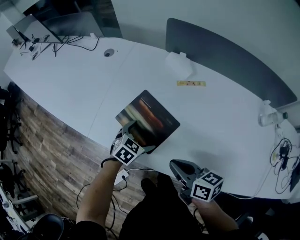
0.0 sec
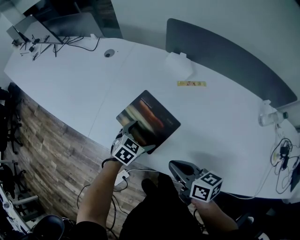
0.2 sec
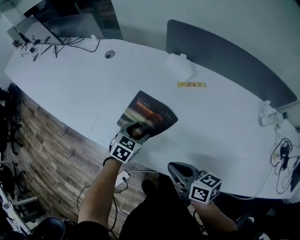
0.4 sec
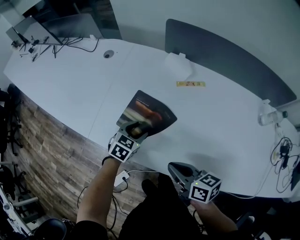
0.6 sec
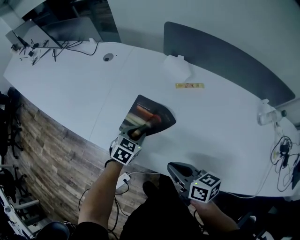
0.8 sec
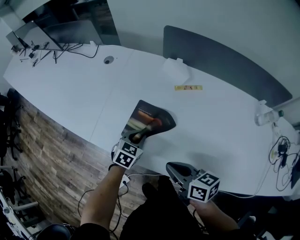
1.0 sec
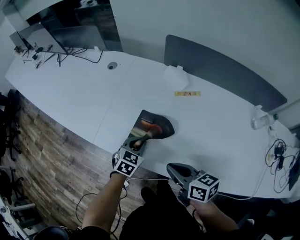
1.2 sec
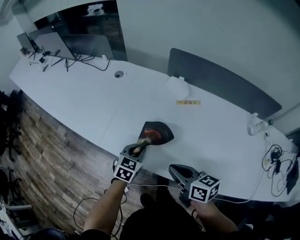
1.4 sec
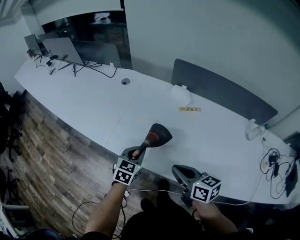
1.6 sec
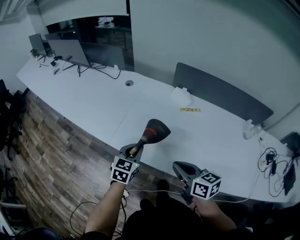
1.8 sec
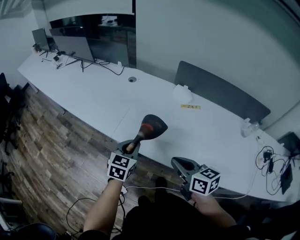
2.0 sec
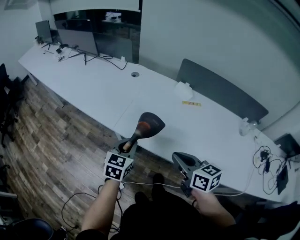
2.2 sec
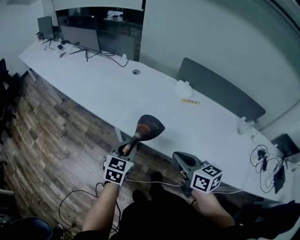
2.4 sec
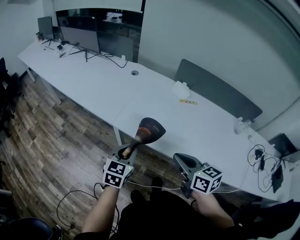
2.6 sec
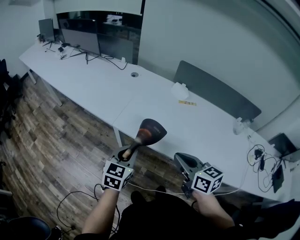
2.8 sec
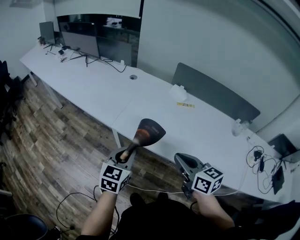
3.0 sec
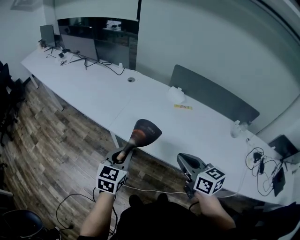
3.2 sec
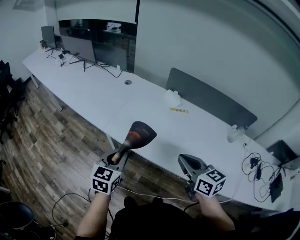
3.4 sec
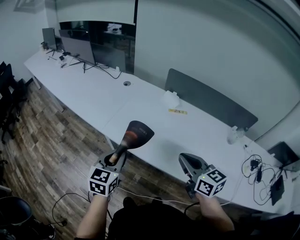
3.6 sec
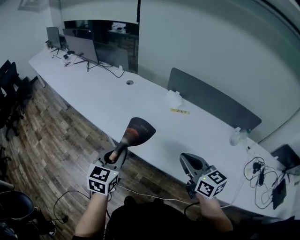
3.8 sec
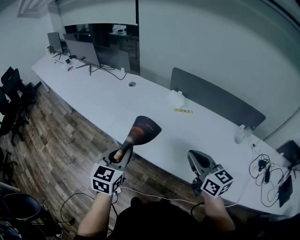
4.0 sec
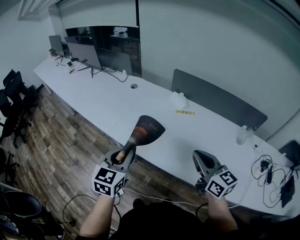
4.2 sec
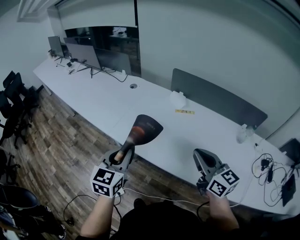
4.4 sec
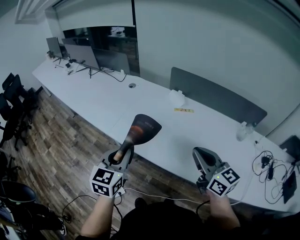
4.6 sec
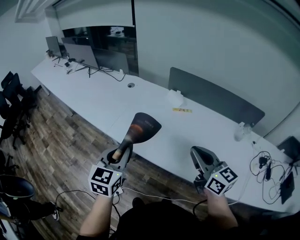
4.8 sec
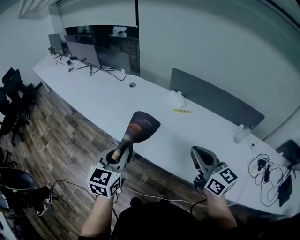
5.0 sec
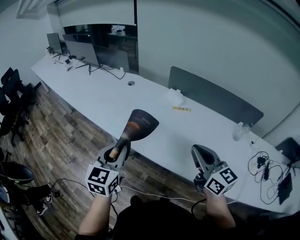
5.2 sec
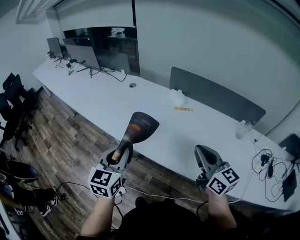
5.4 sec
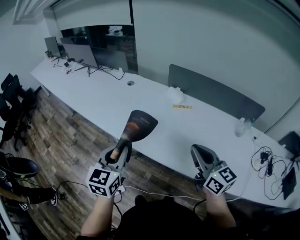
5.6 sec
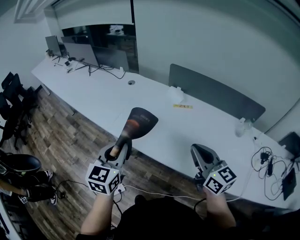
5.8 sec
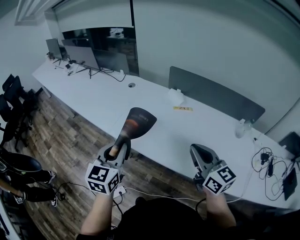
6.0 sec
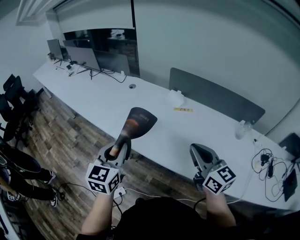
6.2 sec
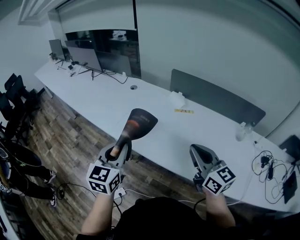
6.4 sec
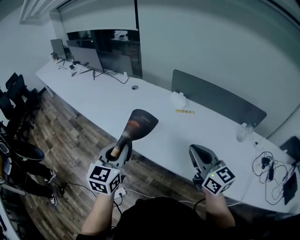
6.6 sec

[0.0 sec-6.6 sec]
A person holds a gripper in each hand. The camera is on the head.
0.0 sec to 1.6 sec: The left gripper is displaced upward and to the left by about 15 cm, rotates some 20 degrees, and closes, while the right gripper goes some 10 cm upward.
1.6 sec to 3.2 sec: The left gripper goes about 25 cm backward, upward and to the left. Meanwhile the right gripper shifts some 15 cm backward and upward.
3.2 sec to 5.0 sec: The right gripper heads to the right and upward, covering about 15 cm. Meanwhile the left gripper is displaced upward and to the right by about 10 cm.
5.0 sec to 6.6 sec: The grippers make only small movements.

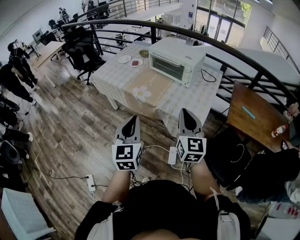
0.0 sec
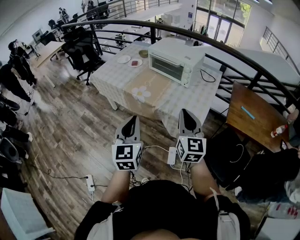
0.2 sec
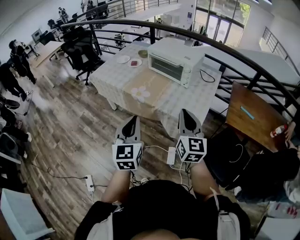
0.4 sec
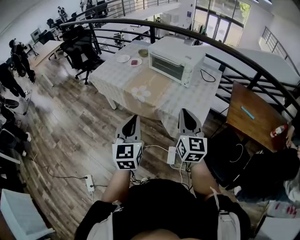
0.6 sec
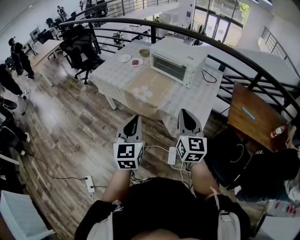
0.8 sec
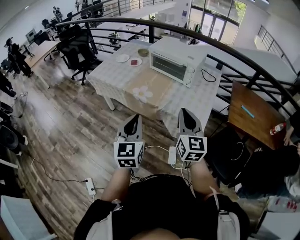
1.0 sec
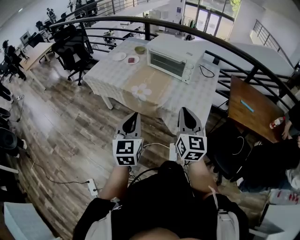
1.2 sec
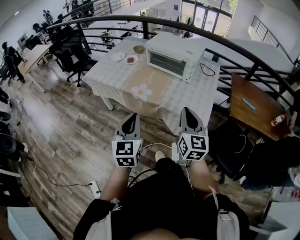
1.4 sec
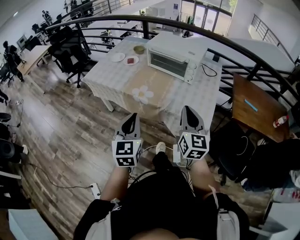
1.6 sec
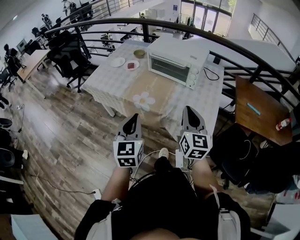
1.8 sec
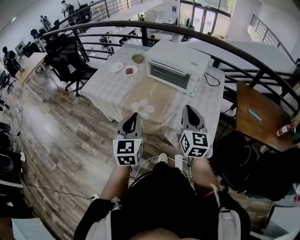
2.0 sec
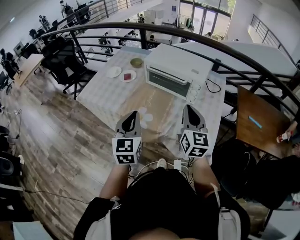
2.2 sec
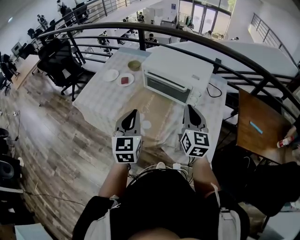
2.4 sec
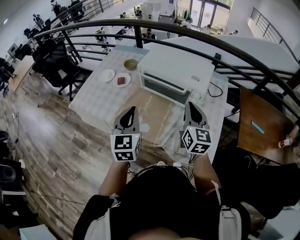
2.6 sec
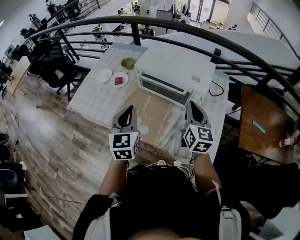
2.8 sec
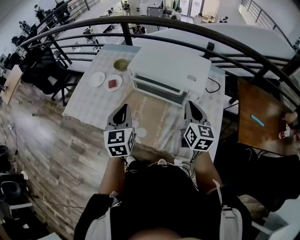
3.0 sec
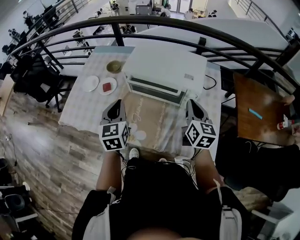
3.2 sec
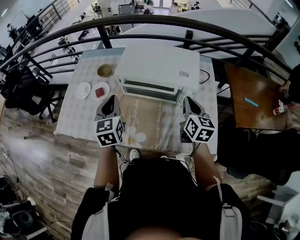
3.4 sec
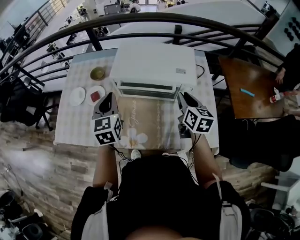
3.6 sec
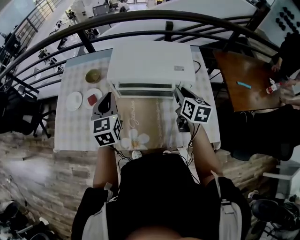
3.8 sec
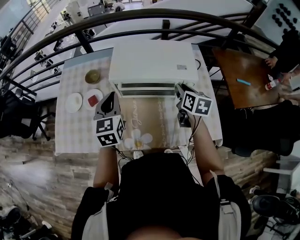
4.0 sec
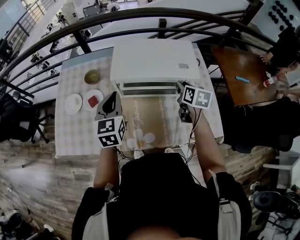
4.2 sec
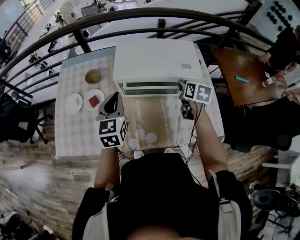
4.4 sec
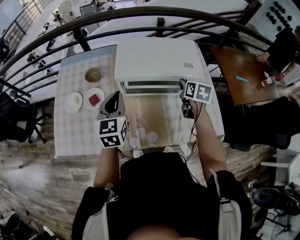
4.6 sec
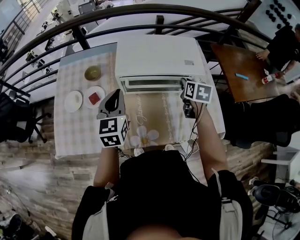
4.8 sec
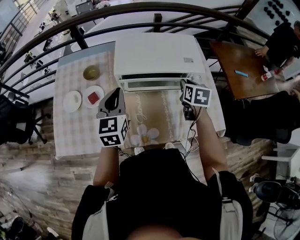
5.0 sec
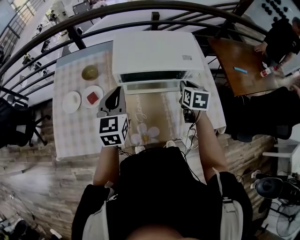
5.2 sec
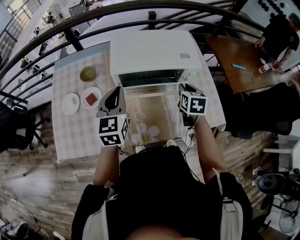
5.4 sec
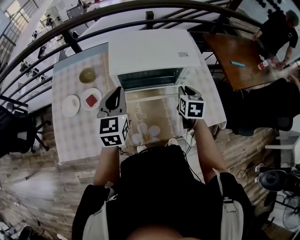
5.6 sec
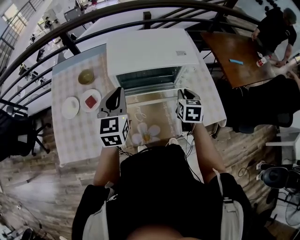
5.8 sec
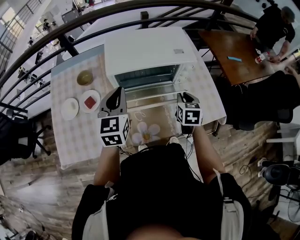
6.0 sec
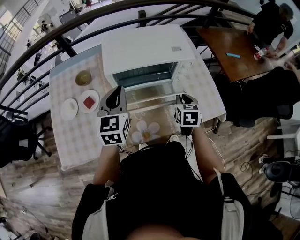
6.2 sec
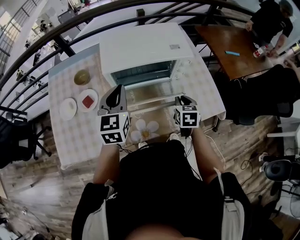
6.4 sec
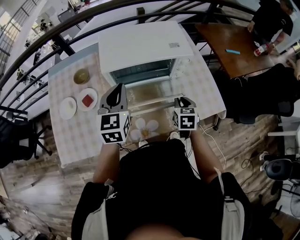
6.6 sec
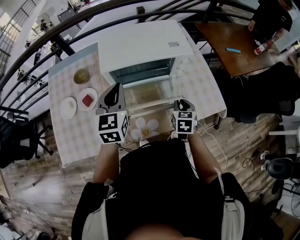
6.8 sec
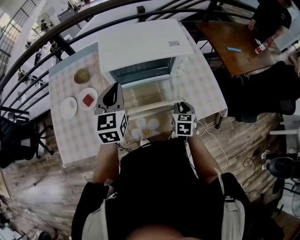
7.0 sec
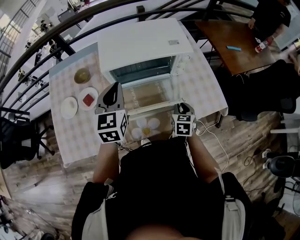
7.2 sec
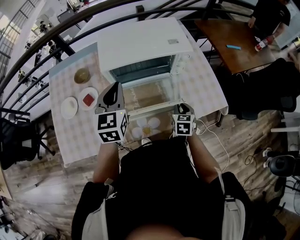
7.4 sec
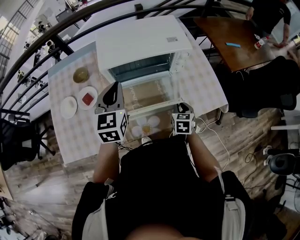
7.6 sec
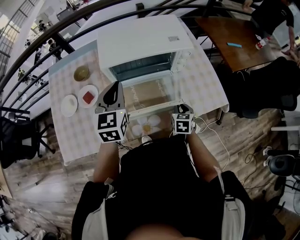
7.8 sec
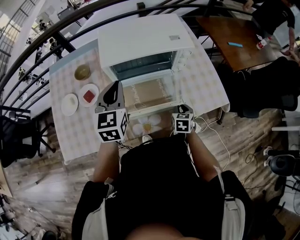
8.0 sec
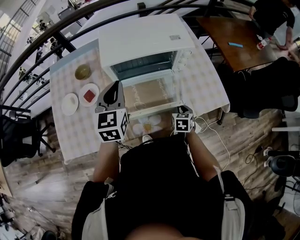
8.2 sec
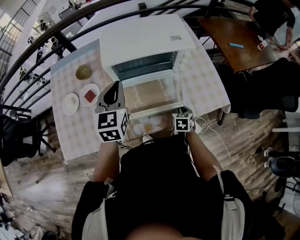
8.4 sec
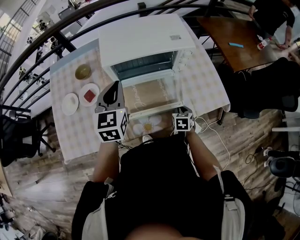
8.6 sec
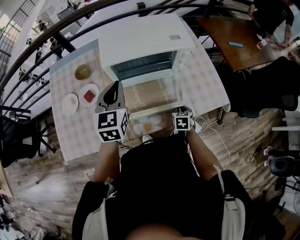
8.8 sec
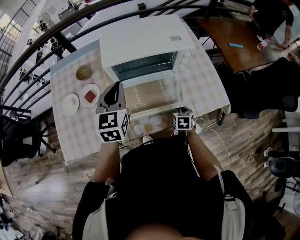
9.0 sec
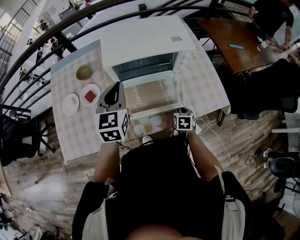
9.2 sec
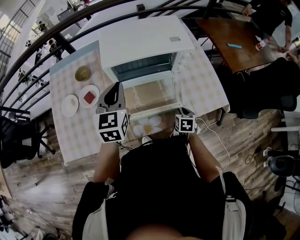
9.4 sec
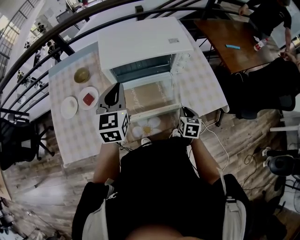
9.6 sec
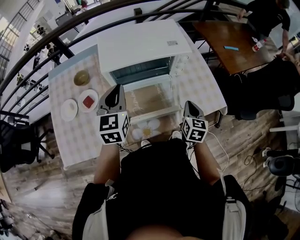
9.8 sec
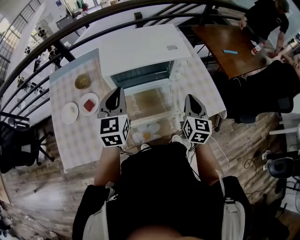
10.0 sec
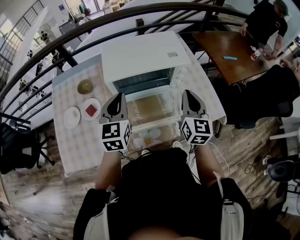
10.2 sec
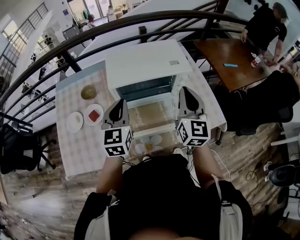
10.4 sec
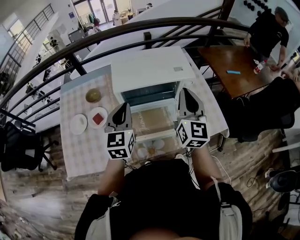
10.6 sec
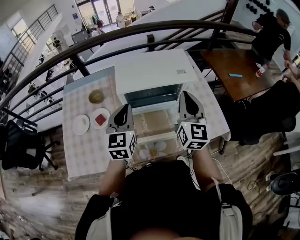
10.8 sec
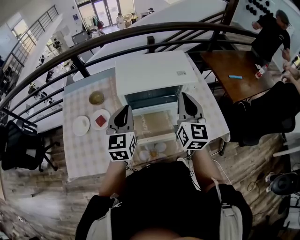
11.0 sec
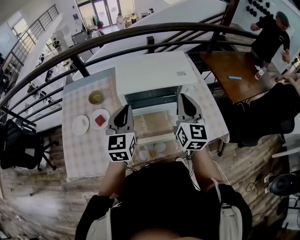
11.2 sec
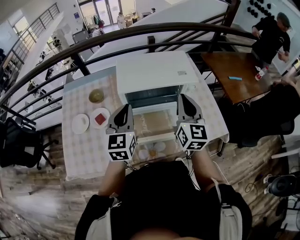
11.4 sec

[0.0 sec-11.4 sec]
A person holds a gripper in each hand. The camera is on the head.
0.0 sec to 1.4 sec: The two grippers go some 5 cm to the left.
1.4 sec to 2.8 sec: Both grippers travel together forward, approximately 35 cm.
2.8 sec to 4.2 sec: The left gripper goes approximately 20 cm forward, and turns by approximately 20 degrees. Meanwhile the right gripper goes approximately 15 cm forward and downward, swivels some 40 degrees, and opens up.
4.2 sec to 5.6 sec: The right gripper is displaced backward by approximately 5 cm.
5.6 sec to 7.2 sec: The right gripper shifts about 15 cm downward and backward.
7.2 sec to 8.6 sec: The right gripper shifts about 10 cm downward.
8.6 sec to 10.0 sec: The right gripper is displaced upward by approximately 25 cm, and angles its fingers upward, by some 40 degrees.
10.0 sec to 11.4 sec: The right gripper travels upward and to the left by some 15 cm.

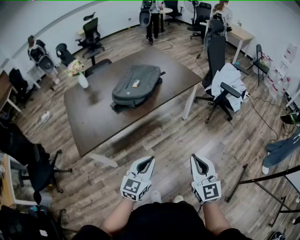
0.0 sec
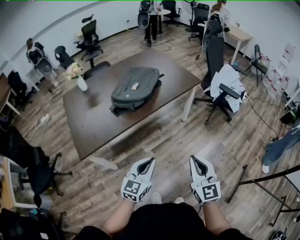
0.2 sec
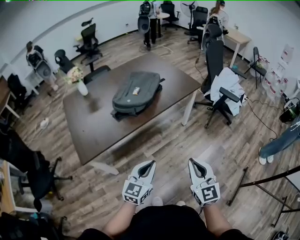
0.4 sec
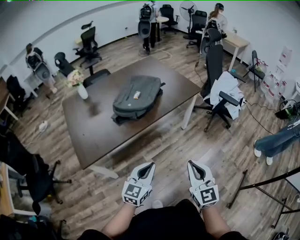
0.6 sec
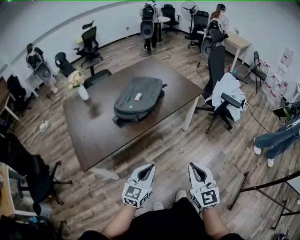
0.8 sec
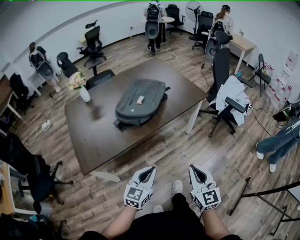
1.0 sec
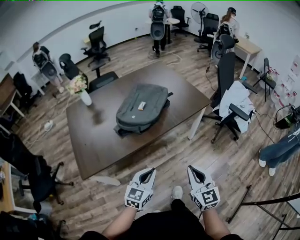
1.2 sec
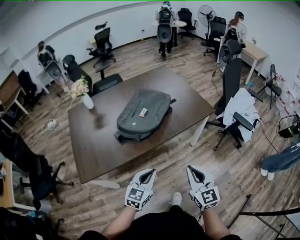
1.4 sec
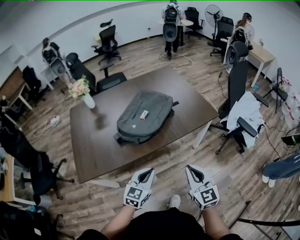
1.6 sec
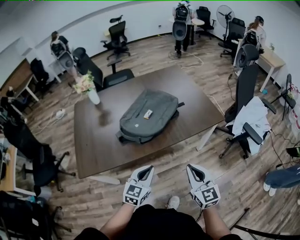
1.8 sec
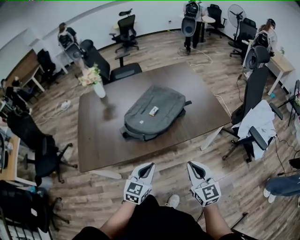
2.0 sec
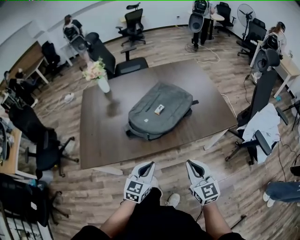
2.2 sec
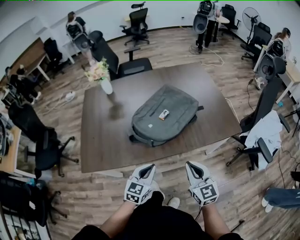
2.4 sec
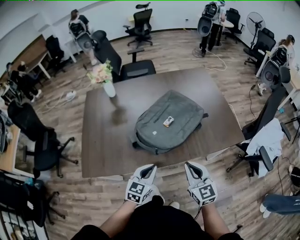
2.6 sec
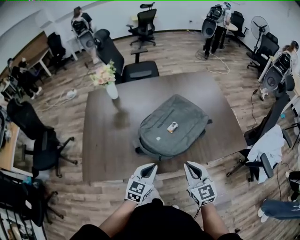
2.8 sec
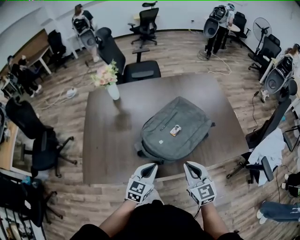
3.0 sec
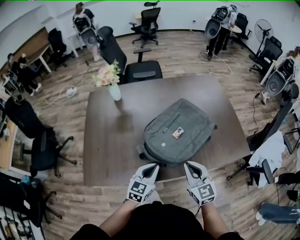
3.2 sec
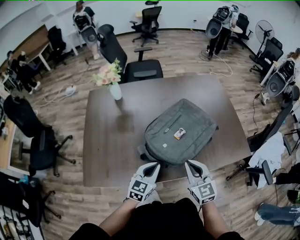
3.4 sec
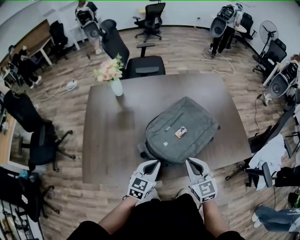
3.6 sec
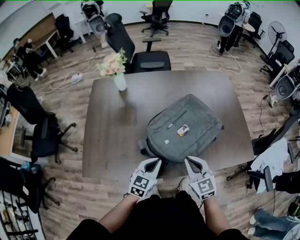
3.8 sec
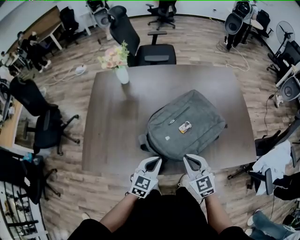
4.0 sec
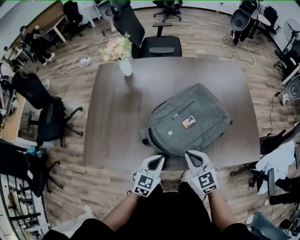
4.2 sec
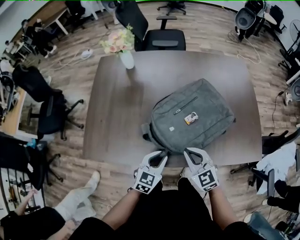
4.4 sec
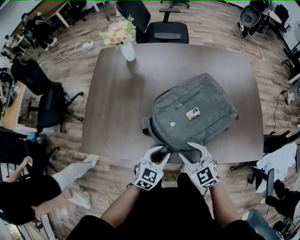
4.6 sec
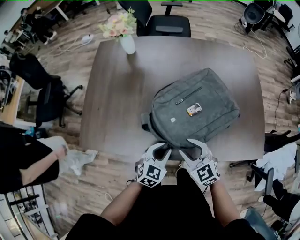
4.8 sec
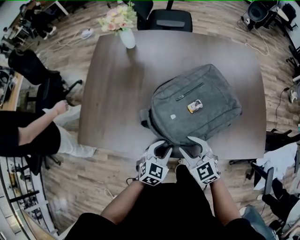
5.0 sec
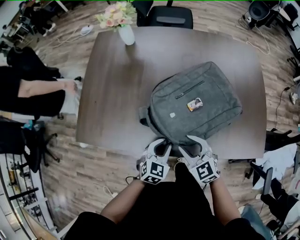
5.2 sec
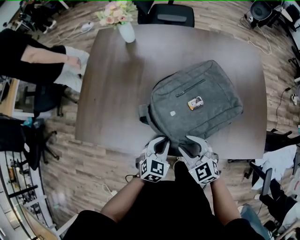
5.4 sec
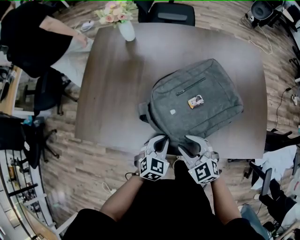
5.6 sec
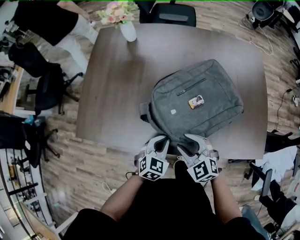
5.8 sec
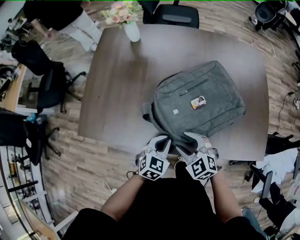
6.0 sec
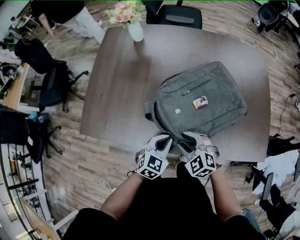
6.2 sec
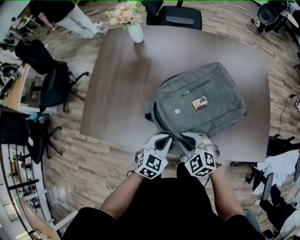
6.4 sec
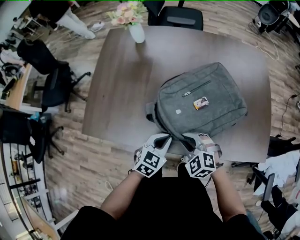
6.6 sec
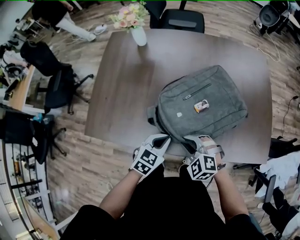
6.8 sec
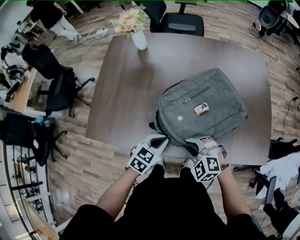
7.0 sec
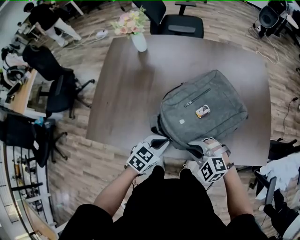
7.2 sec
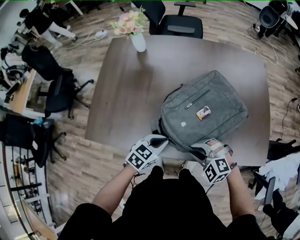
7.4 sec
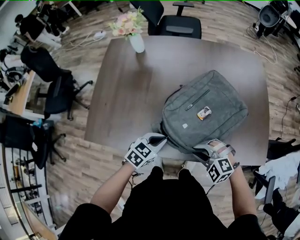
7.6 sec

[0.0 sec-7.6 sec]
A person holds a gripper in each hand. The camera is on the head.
0.0 sec to 1.6 sec: Both grippers move forward, approximately 20 cm.
1.6 sec to 3.0 sec: Both grippers move forward and to the left, about 25 cm.
3.0 sec to 4.6 sec: The two grippers go approximately 5 cm downward. The left gripper opens. The right gripper rotates about 30 degrees, and opens up.
4.6 sec to 6.0 sec: The left gripper closes its fingers.
6.0 sec to 7.6 sec: The right gripper heads to the right, covering some 5 cm, turns by roughly 30 degrees, and closes its fingers.
